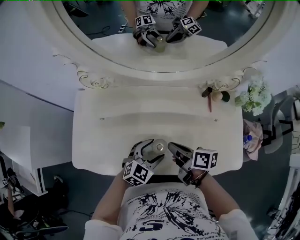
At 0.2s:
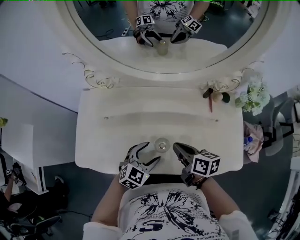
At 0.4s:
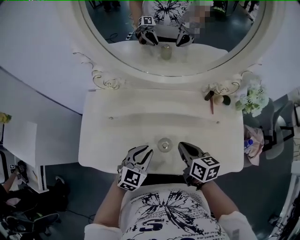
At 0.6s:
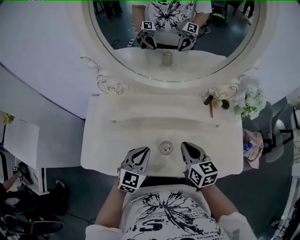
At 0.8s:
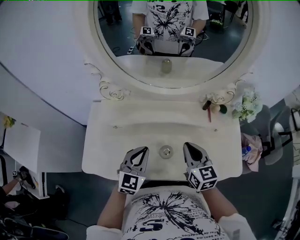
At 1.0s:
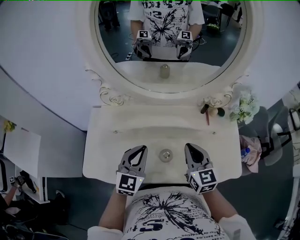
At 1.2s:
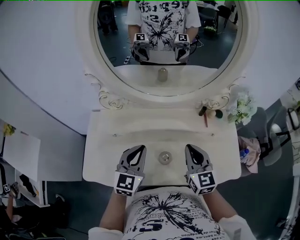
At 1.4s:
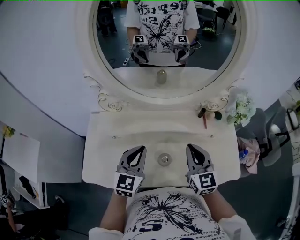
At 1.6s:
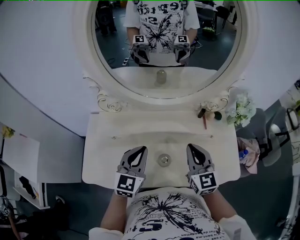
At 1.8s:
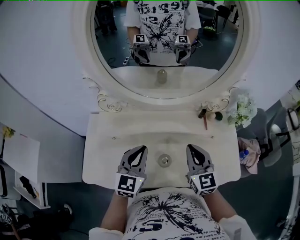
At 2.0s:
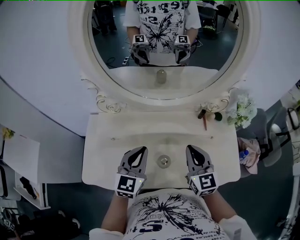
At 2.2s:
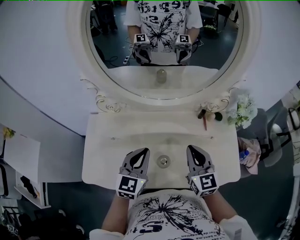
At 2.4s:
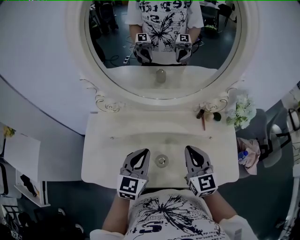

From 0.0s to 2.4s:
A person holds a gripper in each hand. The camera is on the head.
From 0.0s to 1.2s: The left gripper goes some 15 cm upward, rotates roughly 30 degrees, and closes.

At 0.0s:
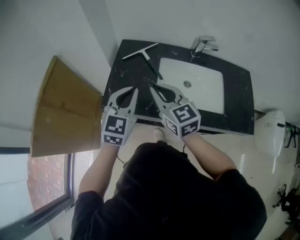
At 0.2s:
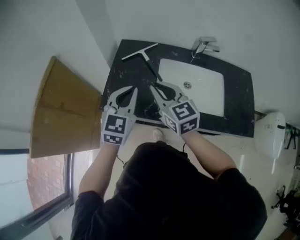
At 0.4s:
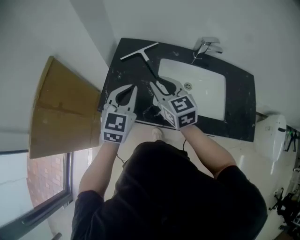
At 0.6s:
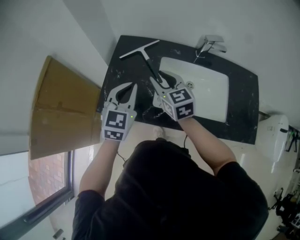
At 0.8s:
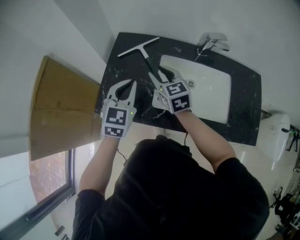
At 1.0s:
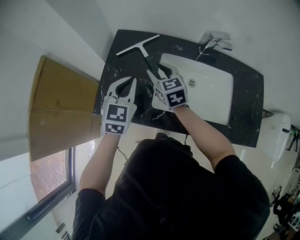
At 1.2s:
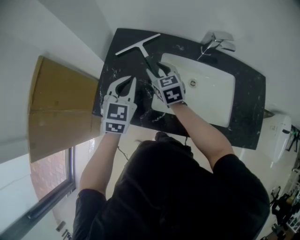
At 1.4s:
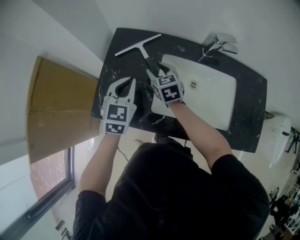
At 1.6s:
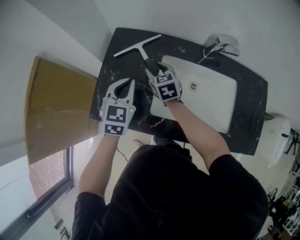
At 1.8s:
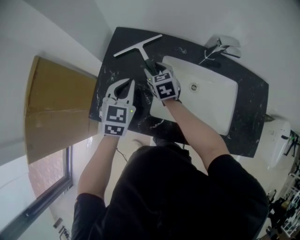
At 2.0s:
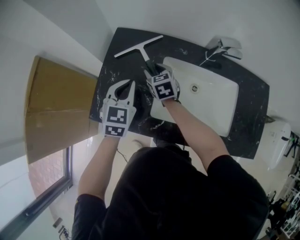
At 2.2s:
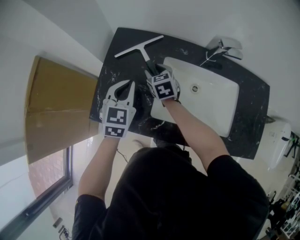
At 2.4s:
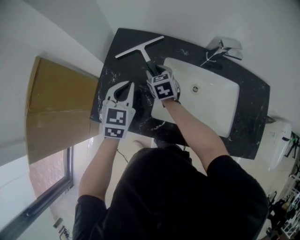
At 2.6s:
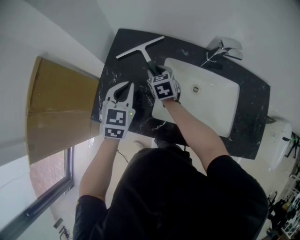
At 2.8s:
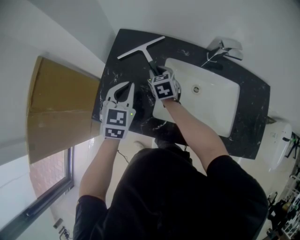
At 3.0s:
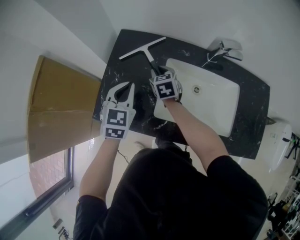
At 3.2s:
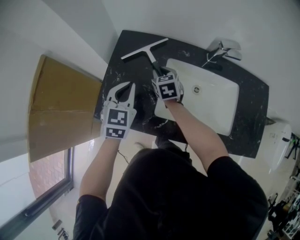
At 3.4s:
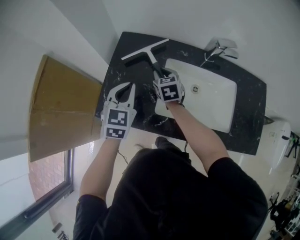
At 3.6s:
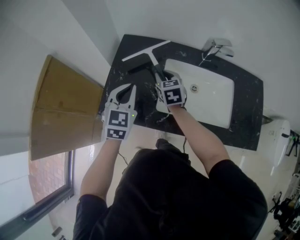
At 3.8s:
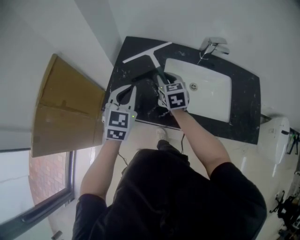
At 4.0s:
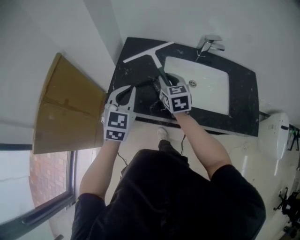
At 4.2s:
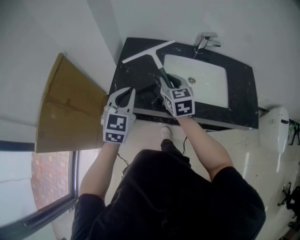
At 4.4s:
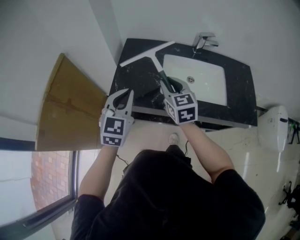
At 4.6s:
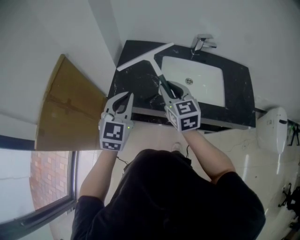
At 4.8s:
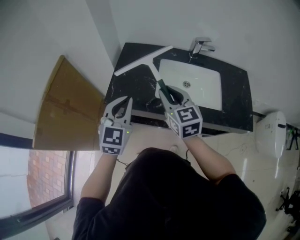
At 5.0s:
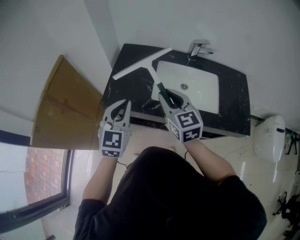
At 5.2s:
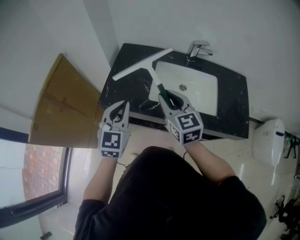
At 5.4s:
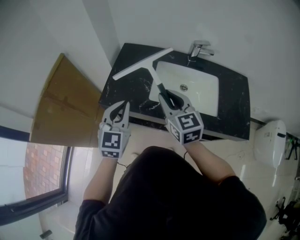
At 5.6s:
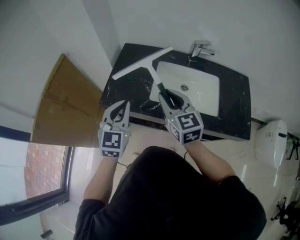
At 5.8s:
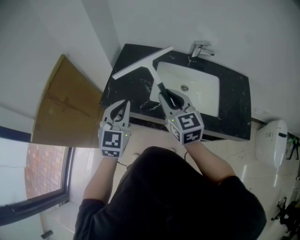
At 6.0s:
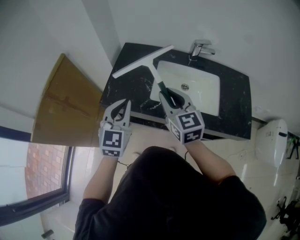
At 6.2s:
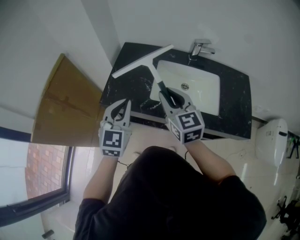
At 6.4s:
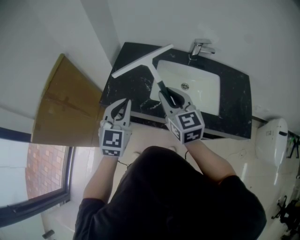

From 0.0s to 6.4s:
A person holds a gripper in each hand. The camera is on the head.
From 0.0s to 1.6s: The left gripper shifts some 20 cm forward and downward, while the right gripper goes approximately 30 cm forward and downward, rotates roughly 20 degrees, and opens its fingers.
From 1.6s to 3.2s: The right gripper closes.
From 3.2s to 4.8s: The grippers both shift backward and upward by about 30 cm. The right gripper changes its angle by roughly 30 degrees.
From 4.8s to 6.4s: There are only small adjustments of the grippers.

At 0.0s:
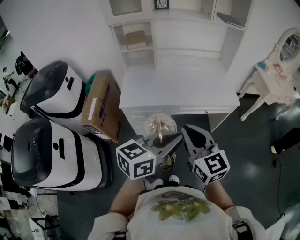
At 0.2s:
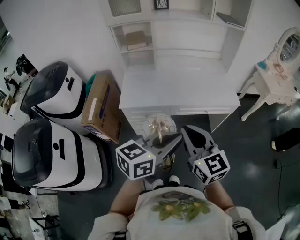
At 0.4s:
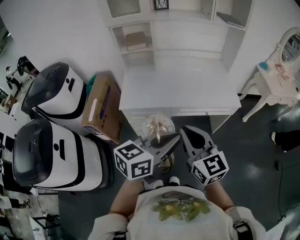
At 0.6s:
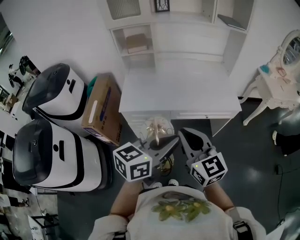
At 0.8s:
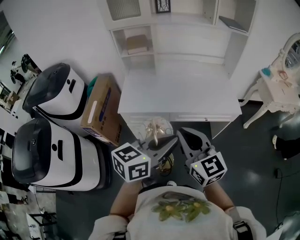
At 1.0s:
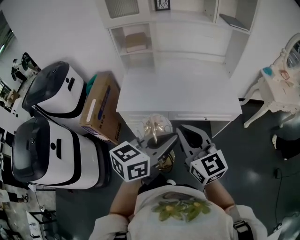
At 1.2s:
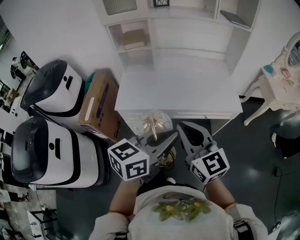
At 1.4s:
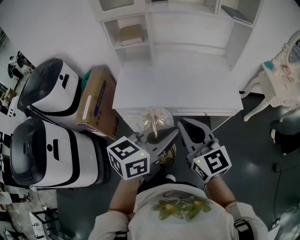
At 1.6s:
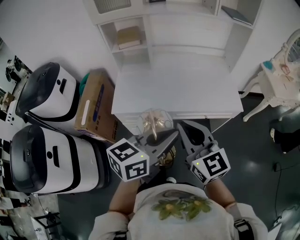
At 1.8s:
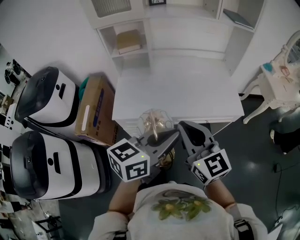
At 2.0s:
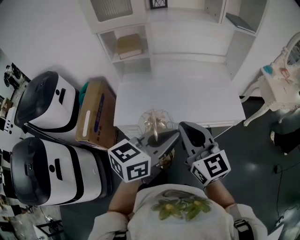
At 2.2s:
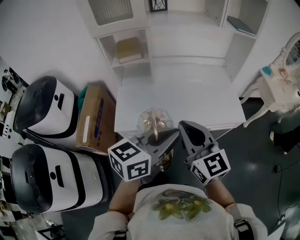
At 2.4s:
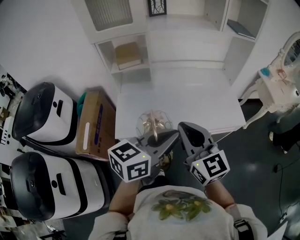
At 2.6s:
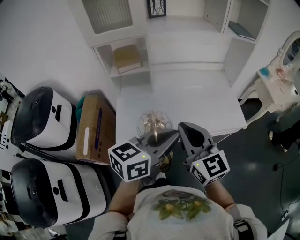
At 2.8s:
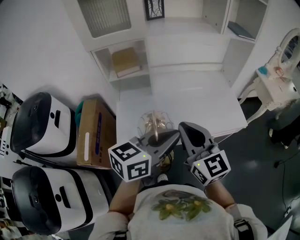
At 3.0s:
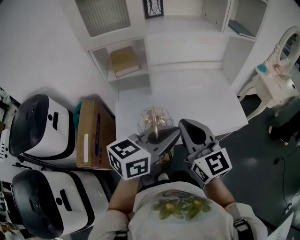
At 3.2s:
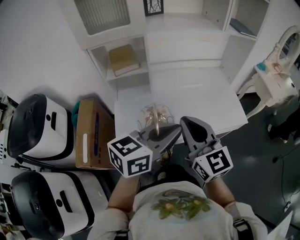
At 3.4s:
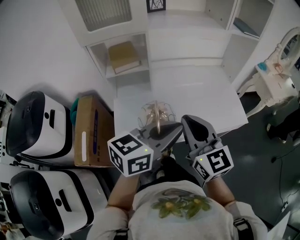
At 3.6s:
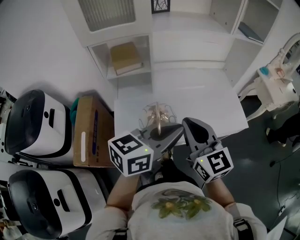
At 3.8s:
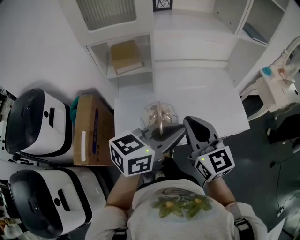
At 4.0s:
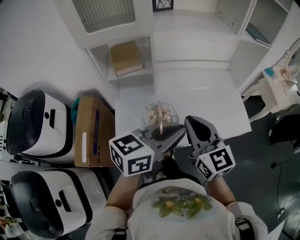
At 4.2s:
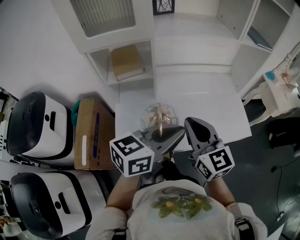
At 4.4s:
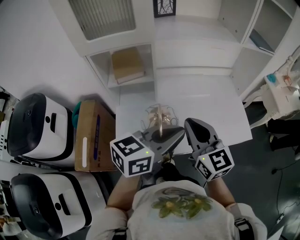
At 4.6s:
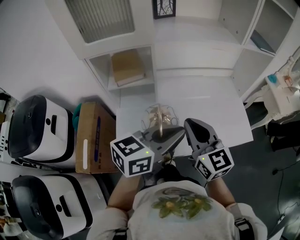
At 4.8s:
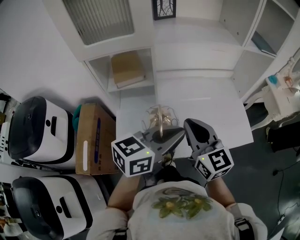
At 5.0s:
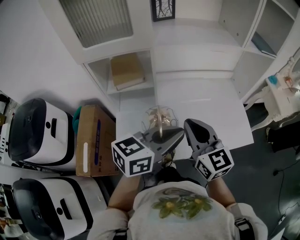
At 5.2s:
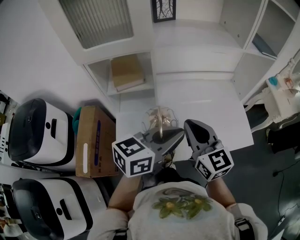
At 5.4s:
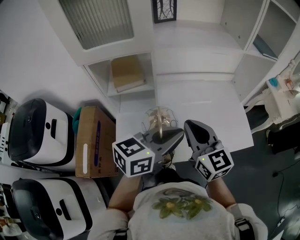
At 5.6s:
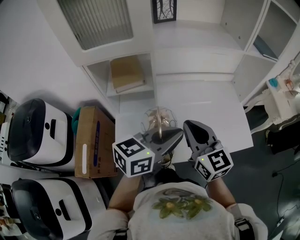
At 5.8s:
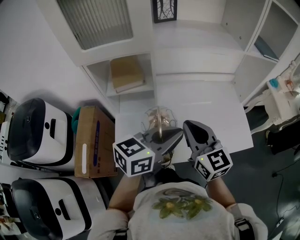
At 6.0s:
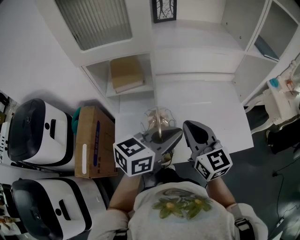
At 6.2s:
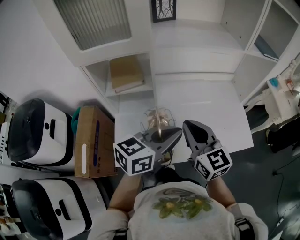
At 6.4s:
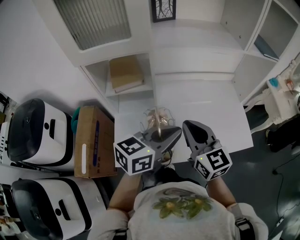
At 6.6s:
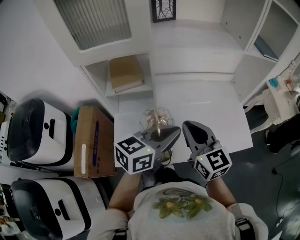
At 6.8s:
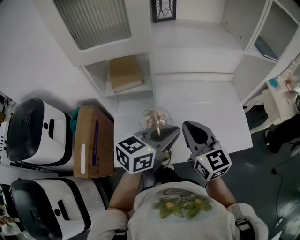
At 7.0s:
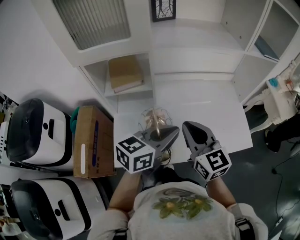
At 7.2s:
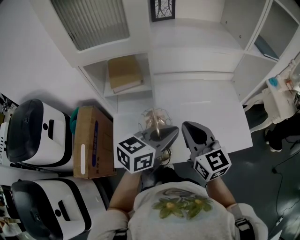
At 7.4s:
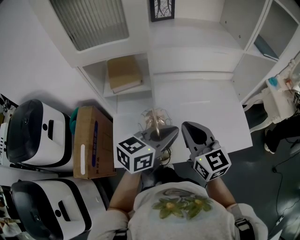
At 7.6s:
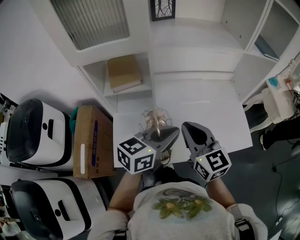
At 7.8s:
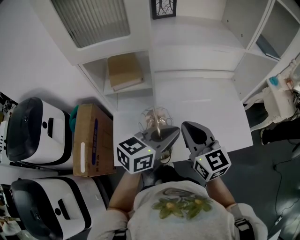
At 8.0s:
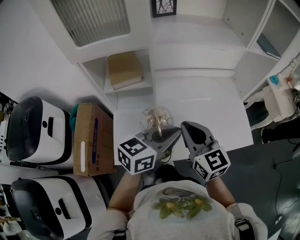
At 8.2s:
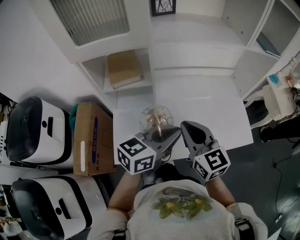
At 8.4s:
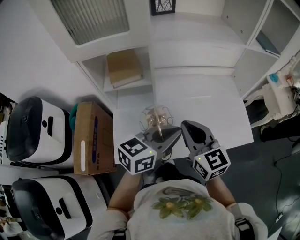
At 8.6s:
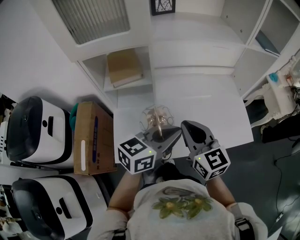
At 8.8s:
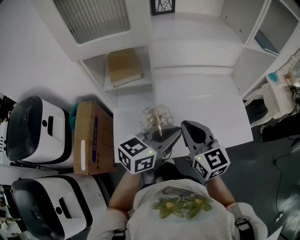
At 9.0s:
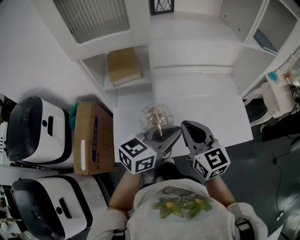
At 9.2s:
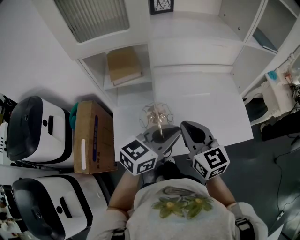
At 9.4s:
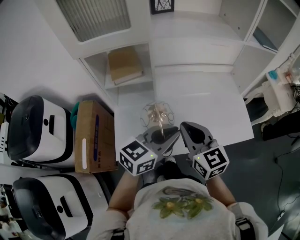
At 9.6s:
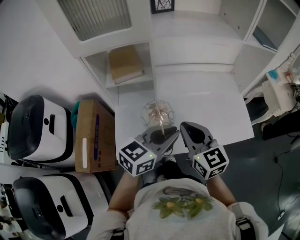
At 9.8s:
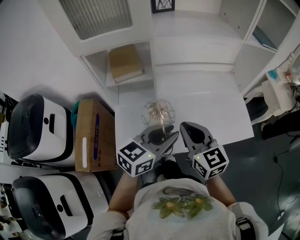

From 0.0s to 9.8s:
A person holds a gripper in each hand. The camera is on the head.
From 0.0s to 1.4s: Both grippers travel together forward, approximately 10 cm.
From 1.4s to 2.8s: Both grippers travel together forward and to the left, about 20 cm.
From 2.8s to 4.2s: Both grippers move forward, about 10 cm.
From 4.2s to 5.6s: The two grippers go about 5 cm forward.
From 5.6s to 8.4s: The grippers move only a little.
From 8.4s to 9.8s: The grippers move only a little.

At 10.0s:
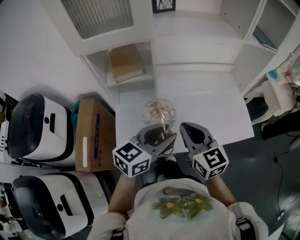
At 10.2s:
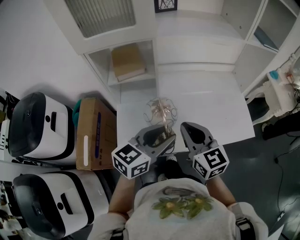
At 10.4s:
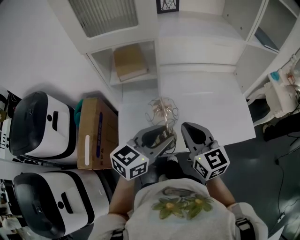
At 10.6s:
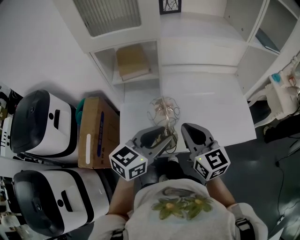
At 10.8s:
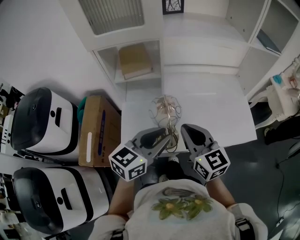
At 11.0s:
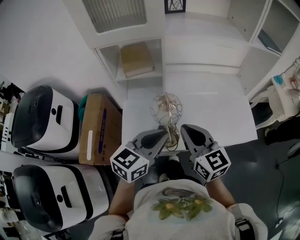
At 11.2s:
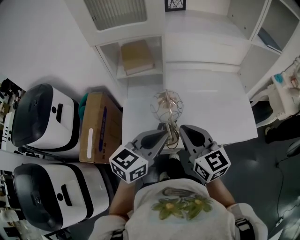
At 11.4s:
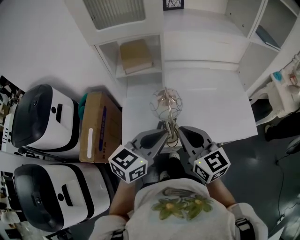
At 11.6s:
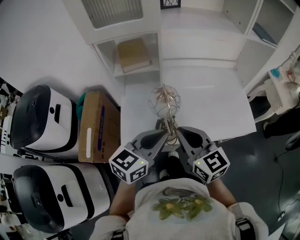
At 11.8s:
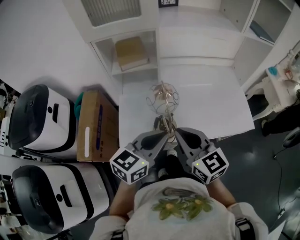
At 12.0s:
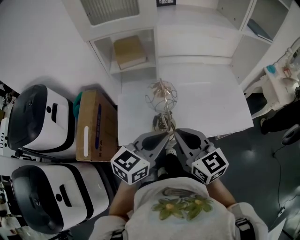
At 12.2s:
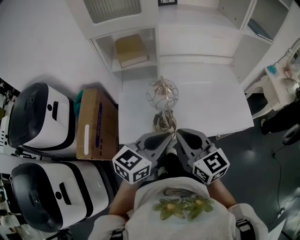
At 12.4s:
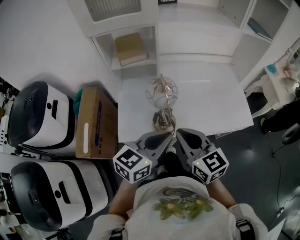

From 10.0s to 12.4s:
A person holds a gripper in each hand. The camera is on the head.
From 10.0s to 11.2s: The left gripper changes place by roughly 5 cm, and closes up. Meanwhile the right gripper ends up roughly 5 cm from where it was.
From 11.2s to 12.4s: The grippers both shift backward by roughly 5 cm.

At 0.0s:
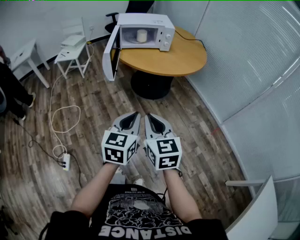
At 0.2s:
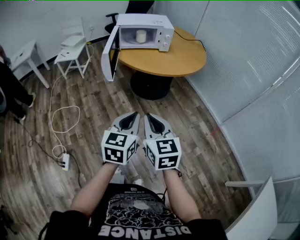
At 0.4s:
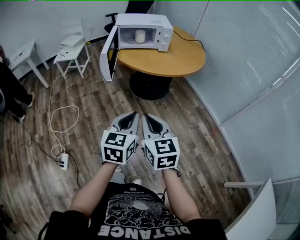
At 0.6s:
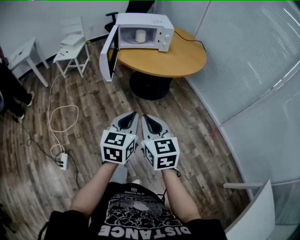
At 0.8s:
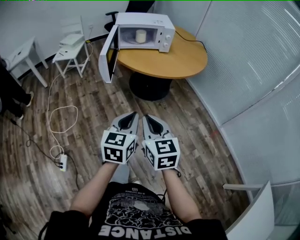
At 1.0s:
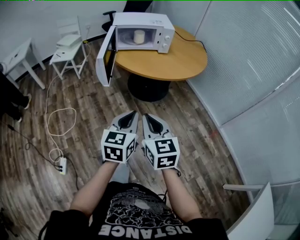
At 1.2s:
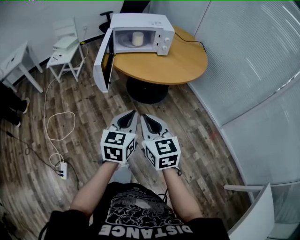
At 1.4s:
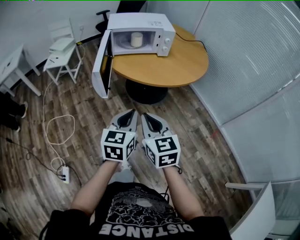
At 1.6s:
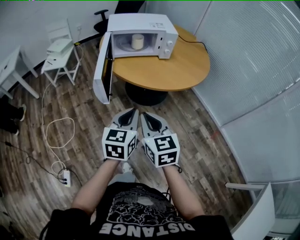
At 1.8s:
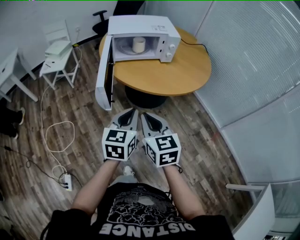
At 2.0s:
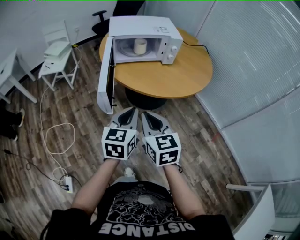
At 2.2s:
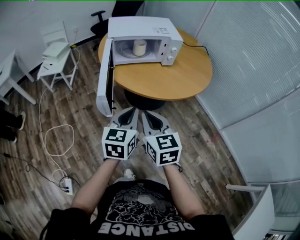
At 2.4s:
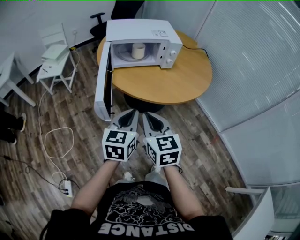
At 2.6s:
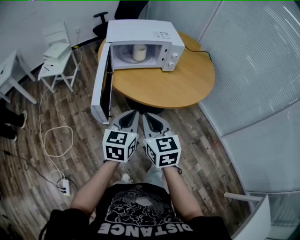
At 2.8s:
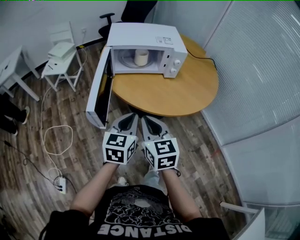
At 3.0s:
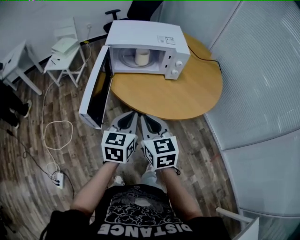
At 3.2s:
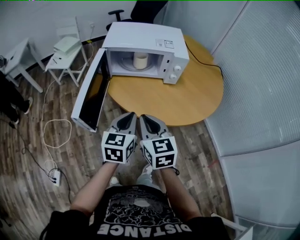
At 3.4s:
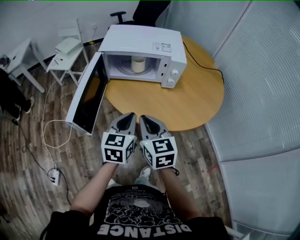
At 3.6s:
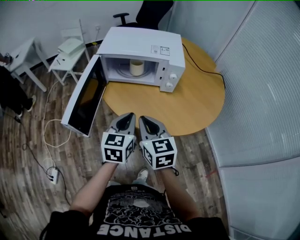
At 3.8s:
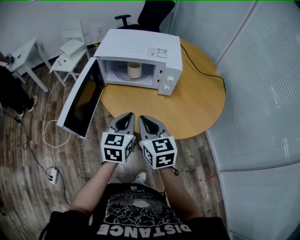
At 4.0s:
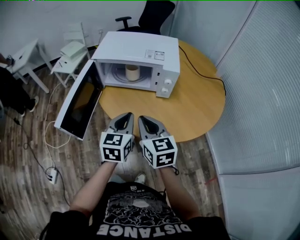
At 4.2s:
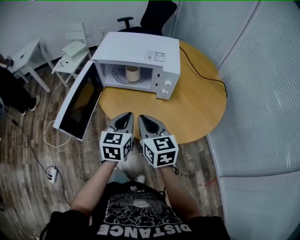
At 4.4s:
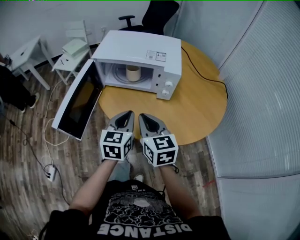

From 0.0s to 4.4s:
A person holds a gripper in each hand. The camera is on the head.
From 0.0s to 1.4s: Both grippers move forward, about 15 cm.
From 1.4s to 3.0s: Both grippers move forward, about 25 cm.
From 3.0s to 4.4s: The grippers both shift to the right and forward by approximately 15 cm.
